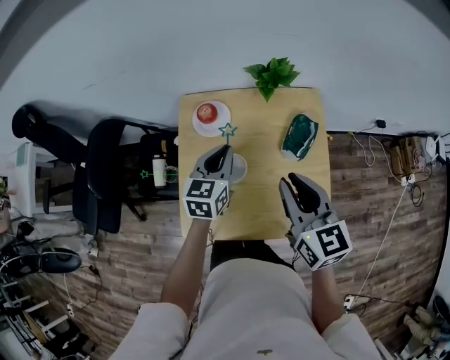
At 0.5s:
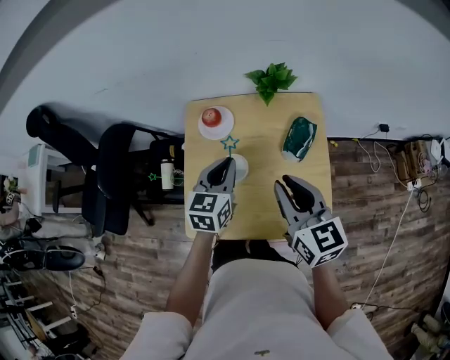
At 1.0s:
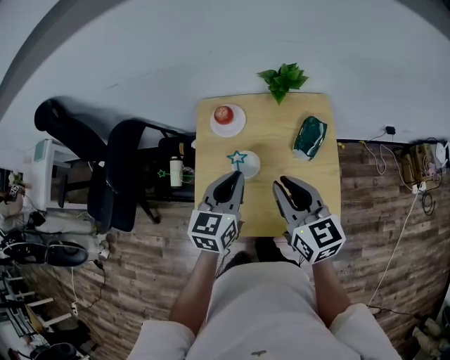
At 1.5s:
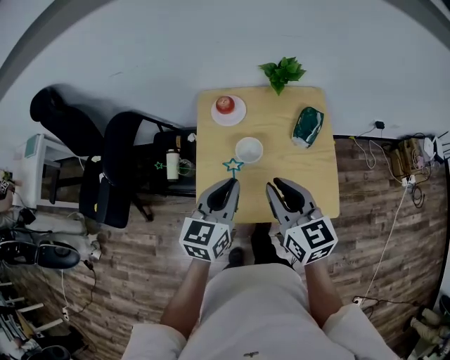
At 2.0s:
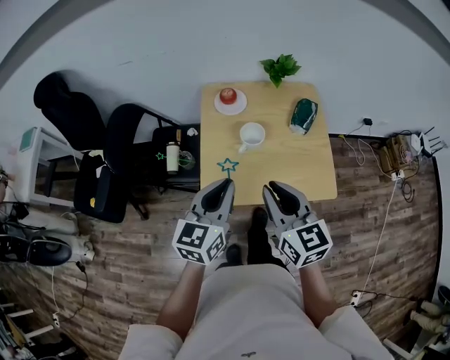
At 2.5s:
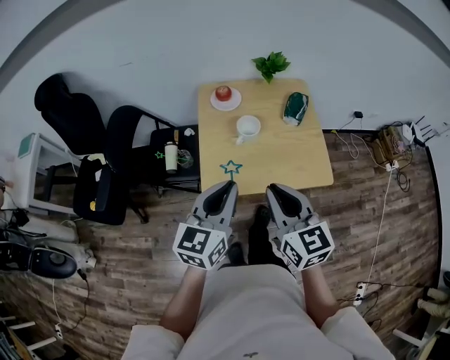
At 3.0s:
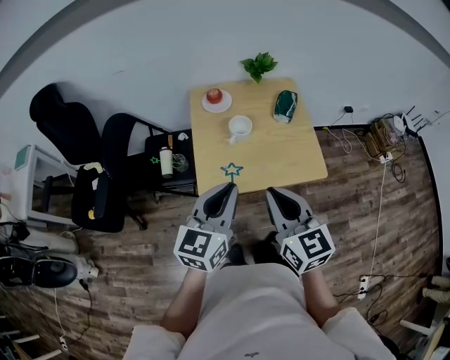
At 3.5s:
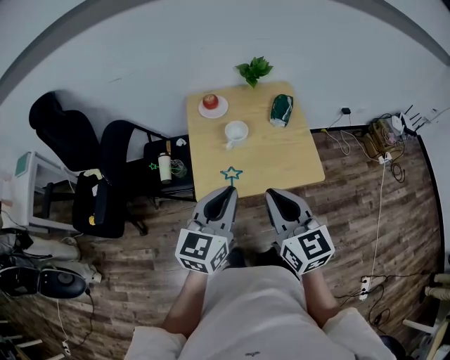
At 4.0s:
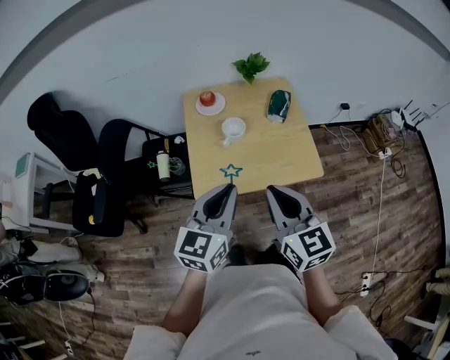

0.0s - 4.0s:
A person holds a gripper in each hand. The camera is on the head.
0.0s - 2.0s: The right gripper travels backward and to the left by approximately 25 cm; the left gripper heads backward, covering roughly 30 cm.
2.0s - 4.0s: Both grippers travel together backward, some 5 cm.

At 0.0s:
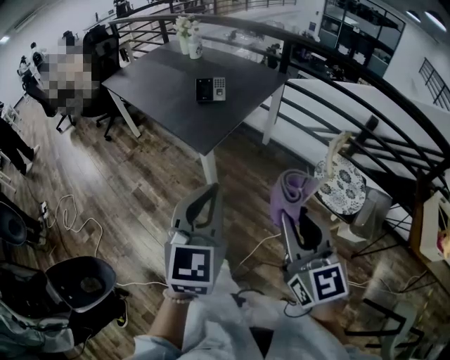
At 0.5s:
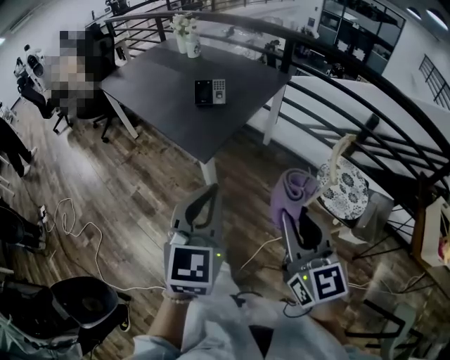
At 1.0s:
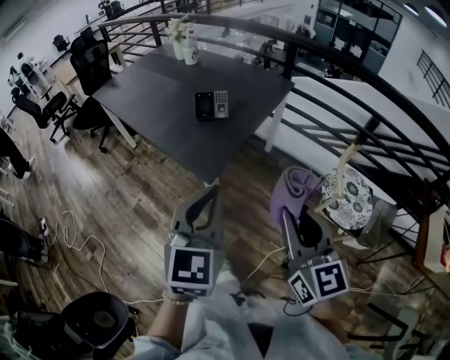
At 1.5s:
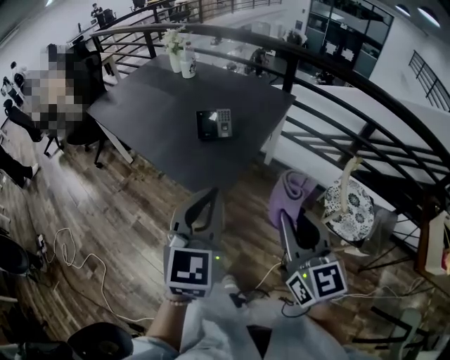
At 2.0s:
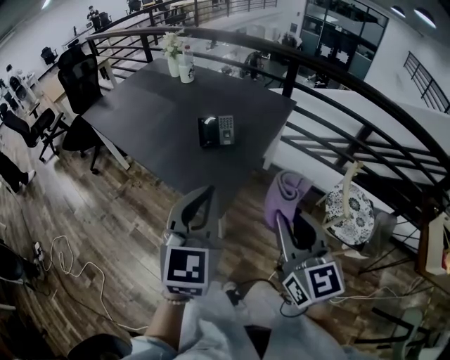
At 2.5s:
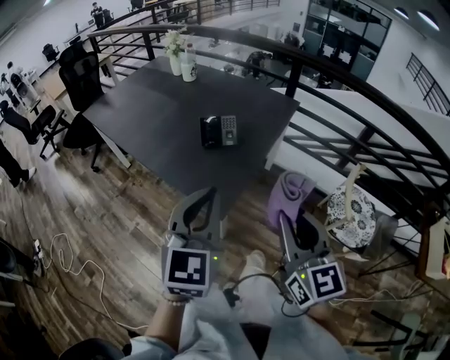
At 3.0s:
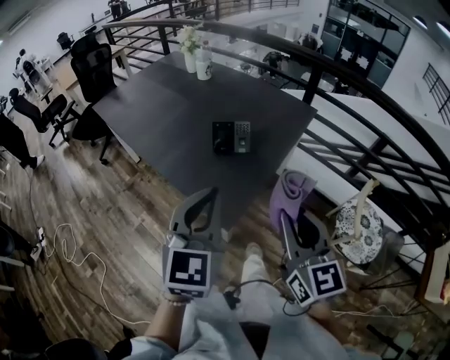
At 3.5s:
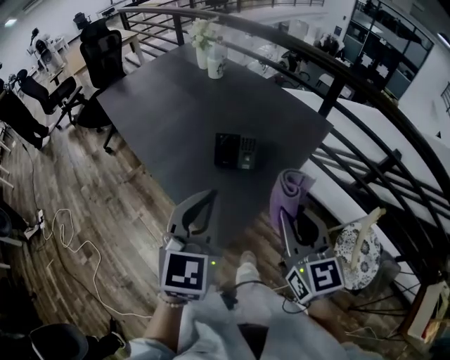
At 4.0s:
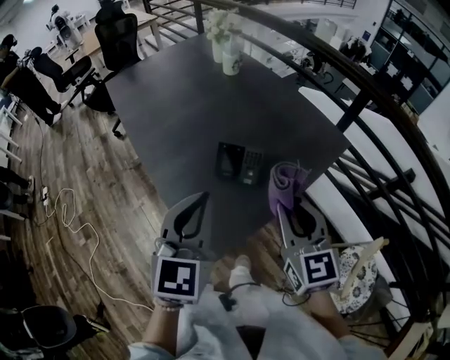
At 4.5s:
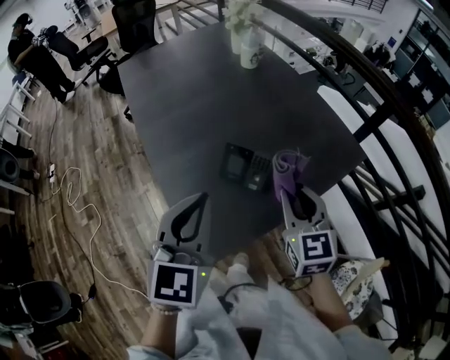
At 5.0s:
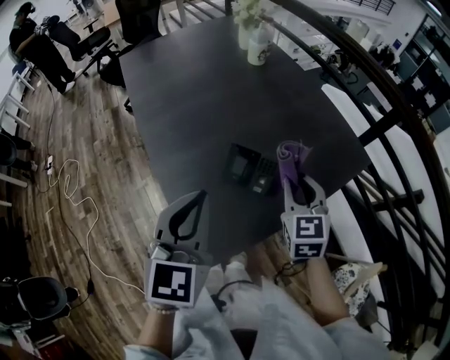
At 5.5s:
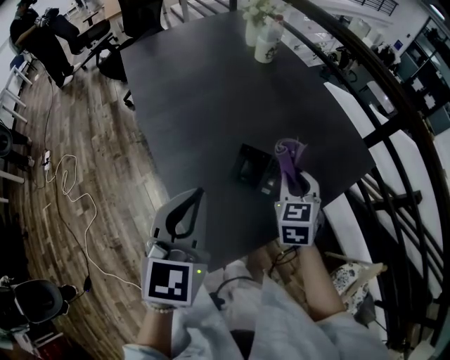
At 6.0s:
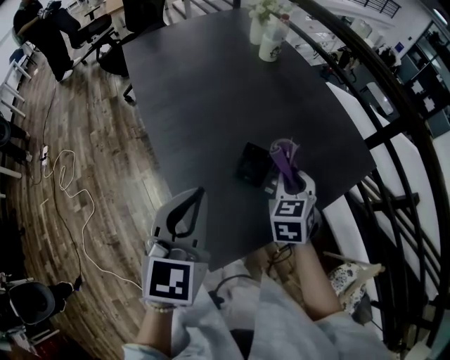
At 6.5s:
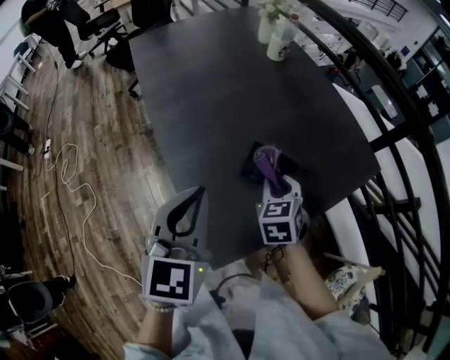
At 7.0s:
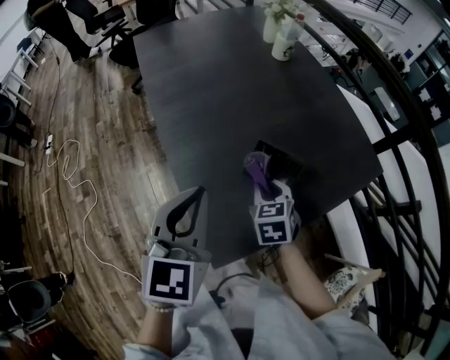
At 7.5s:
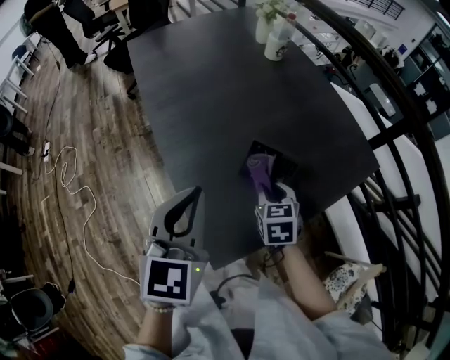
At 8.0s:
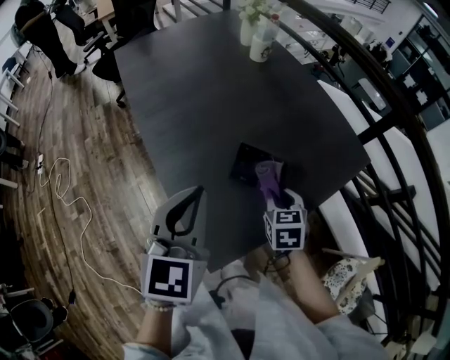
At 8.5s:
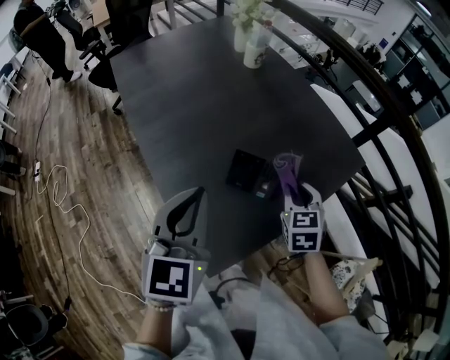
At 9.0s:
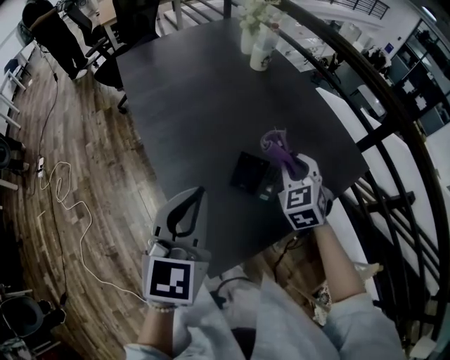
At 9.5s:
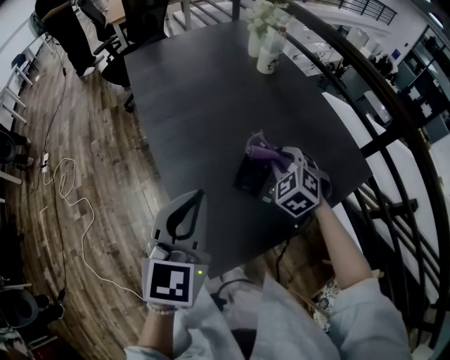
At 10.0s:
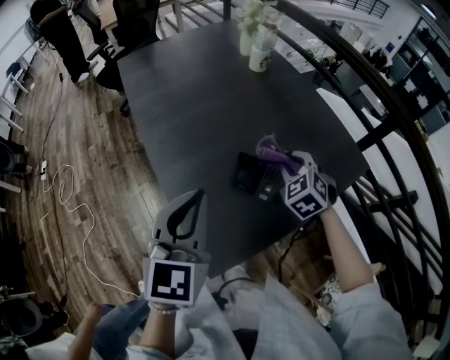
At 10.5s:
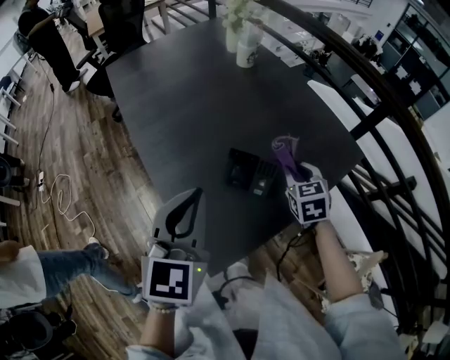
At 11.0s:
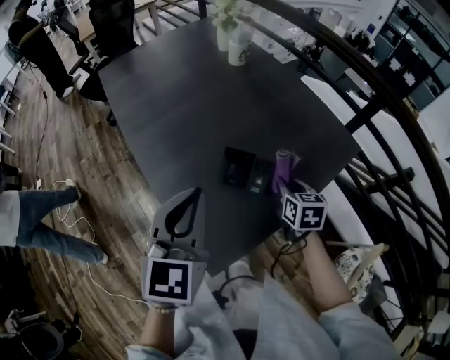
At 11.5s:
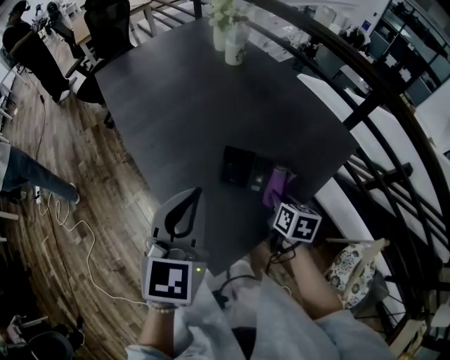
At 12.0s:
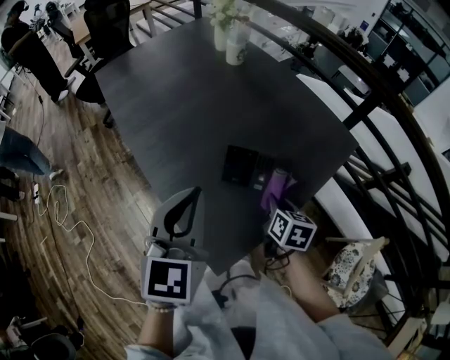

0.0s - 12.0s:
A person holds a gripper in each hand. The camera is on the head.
0.0s - 2.0s: The right gripper is displaced forward and to the left by some 25 cm. The left gripper travels forward by some 25 cm.
2.0s - 4.0s: The two grippers go about 25 cm forward. The right gripper rotates roughly 20 degrees.
4.0s - 6.0s: The right gripper goes about 20 cm forward and downward, and changes its angle by approximately 30 degrees; the left gripper moves to the left, approximately 5 cm.
6.0s - 8.0s: The right gripper goes about 5 cm downward, and travels to the left and back again, some 10 cm each way.
8.0s - 10.0s: The right gripper moves forward and upward, approximately 10 cm, and rolls counterclockwise, seen from behind, by about 40 degrees.
10.0s - 12.0s: The right gripper heads backward and downward, covering some 15 cm, and rotates around the line of its fingers by about 70 degrees, clockwise from behind.

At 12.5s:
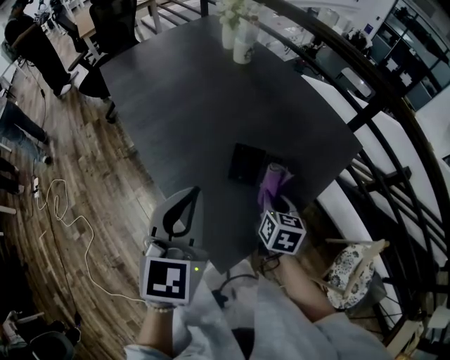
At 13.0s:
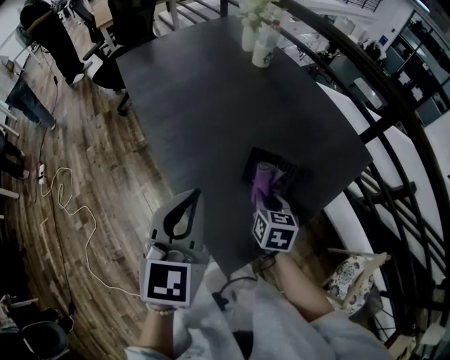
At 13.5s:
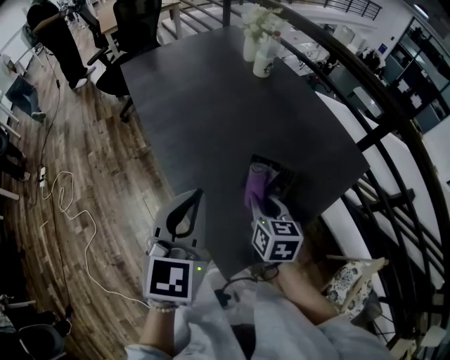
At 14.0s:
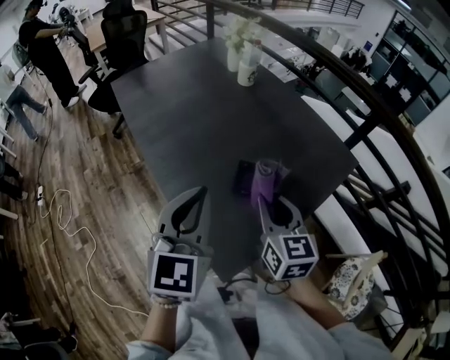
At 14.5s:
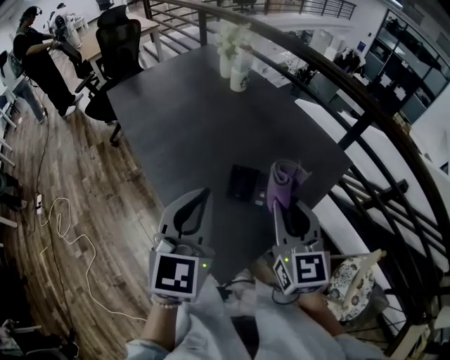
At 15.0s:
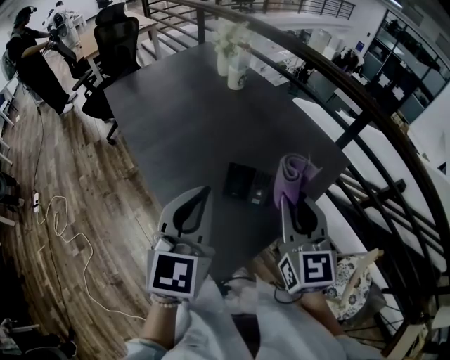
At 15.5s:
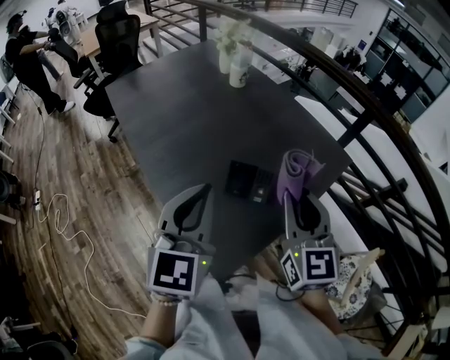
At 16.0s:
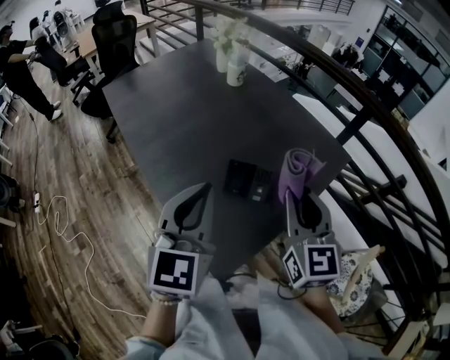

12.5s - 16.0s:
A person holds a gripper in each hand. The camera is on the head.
12.5s - 14.5s: The right gripper travels upward by roughly 20 cm, and changes its angle by approximately 40 degrees.
14.5s - 16.0s: The grippers make only small movements.

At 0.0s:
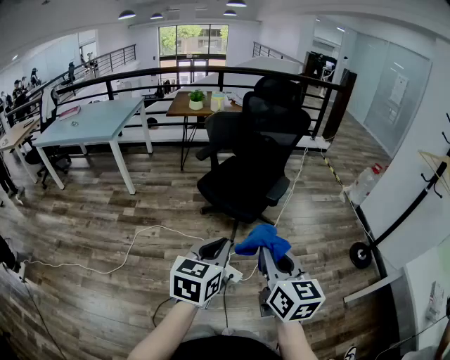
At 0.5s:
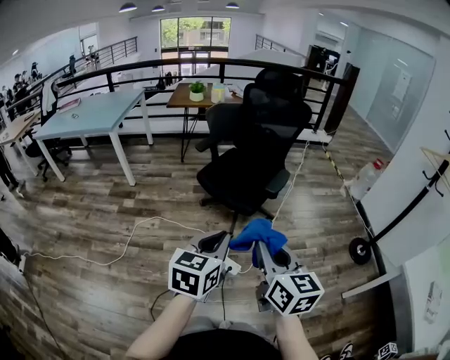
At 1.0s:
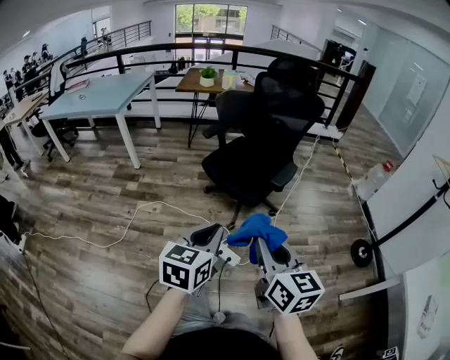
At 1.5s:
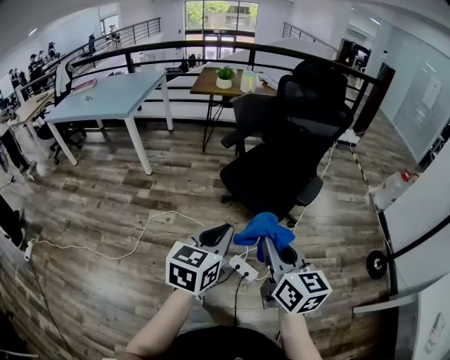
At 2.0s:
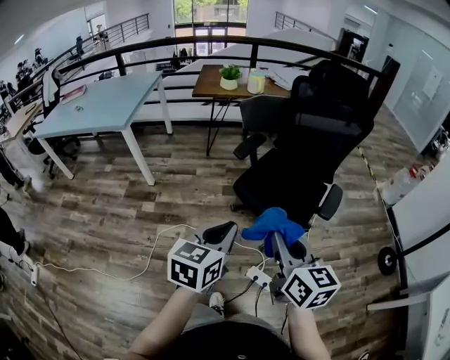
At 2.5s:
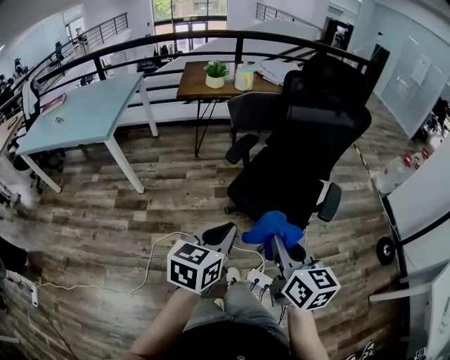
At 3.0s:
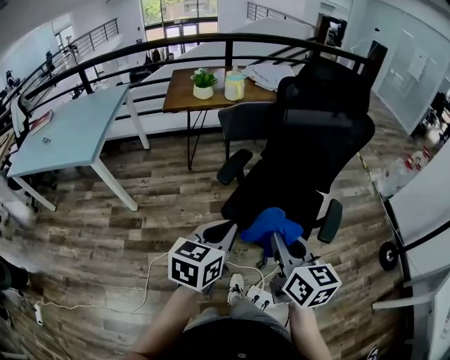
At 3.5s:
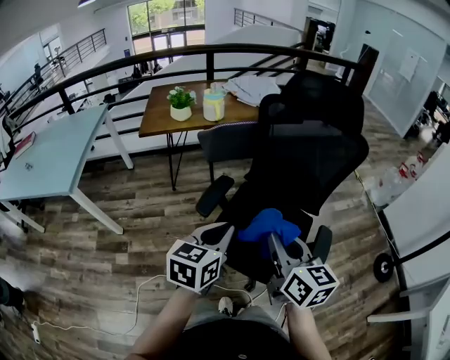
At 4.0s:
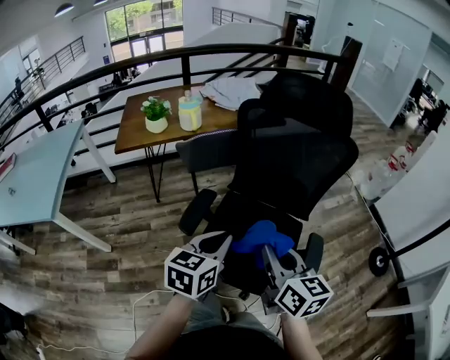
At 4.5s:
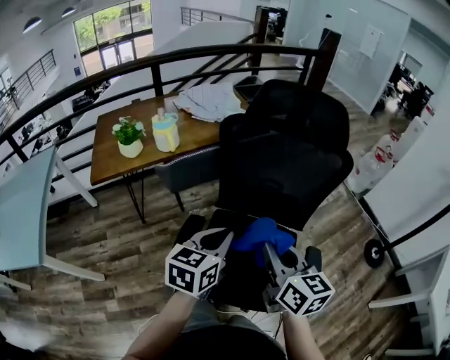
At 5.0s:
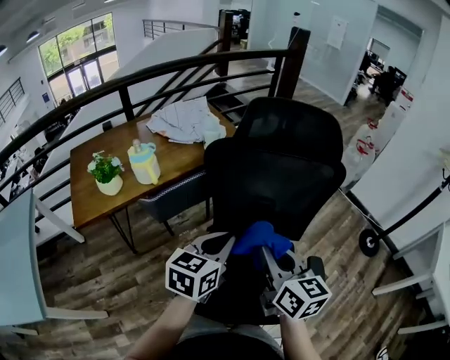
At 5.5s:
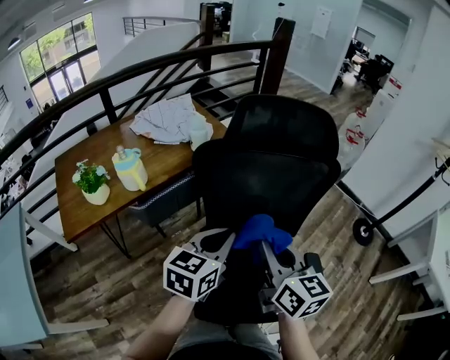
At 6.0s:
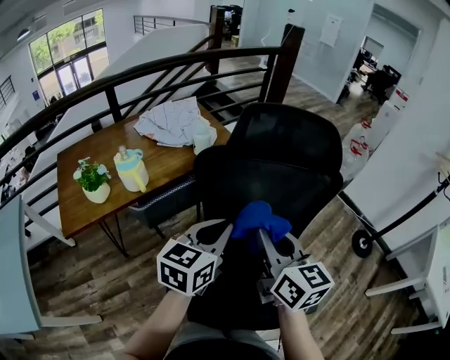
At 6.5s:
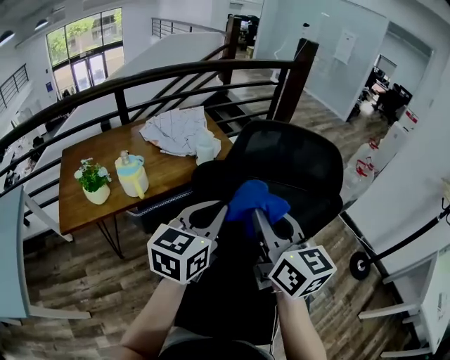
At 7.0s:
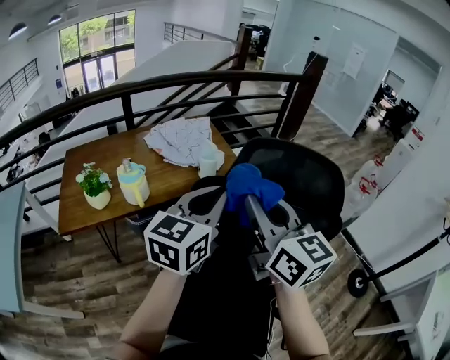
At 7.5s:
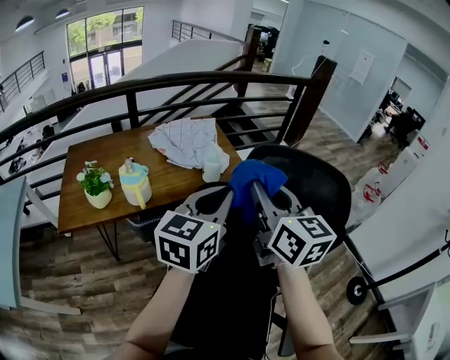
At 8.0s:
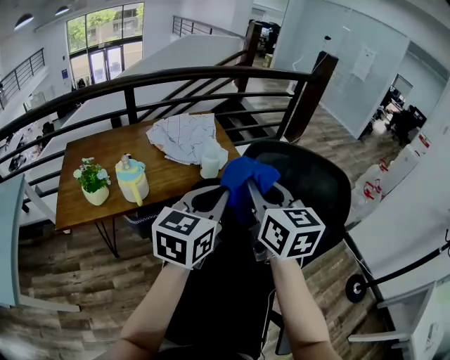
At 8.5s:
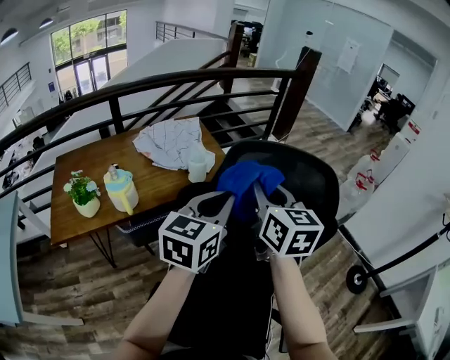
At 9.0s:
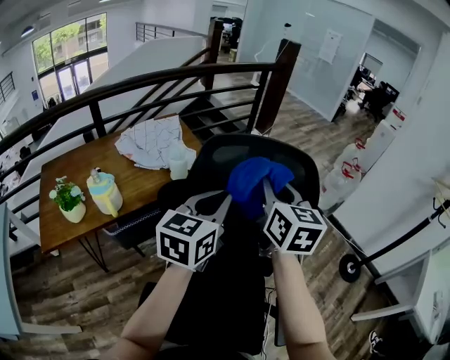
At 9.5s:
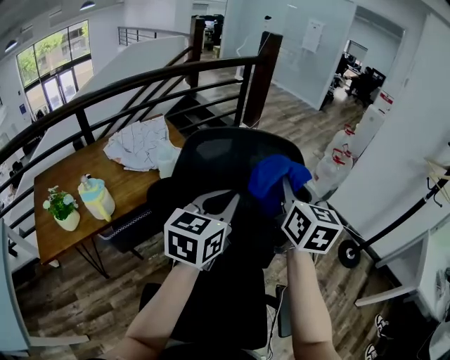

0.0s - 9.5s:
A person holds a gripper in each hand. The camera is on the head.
0.0s - 2.0s: Both grippers move forward and to the left, some 30 cm.
2.0s - 4.0s: Both grippers travel together forward, some 40 cm.
4.0s - 5.5s: Both grippers move forward, roughly 25 cm. The right gripper turns by some 20 degrees. Meanwhile the left gripper swivels about 30 degrees.
5.5s - 7.5s: Both grippers move forward and upward, approximately 25 cm. The right gripper changes its angle by some 20 degrees; the left gripper changes its angle by roughly 30 degrees.
7.5s - 9.5s: The right gripper changes place by roughly 20 cm, and turns by about 30 degrees. Meanwhile the left gripper ends up about 15 cm from where it was.
